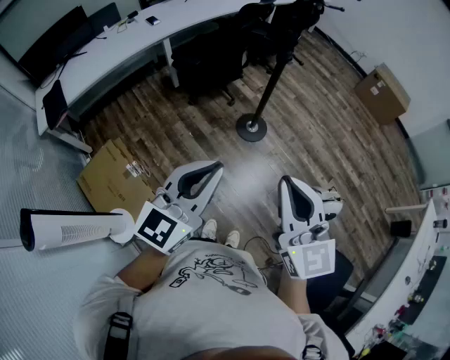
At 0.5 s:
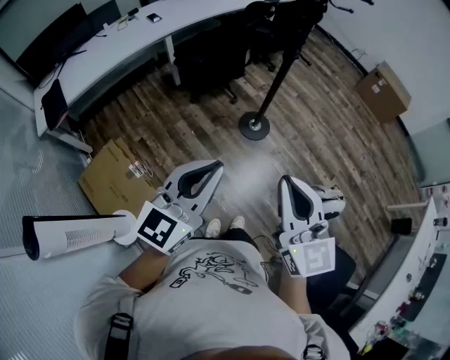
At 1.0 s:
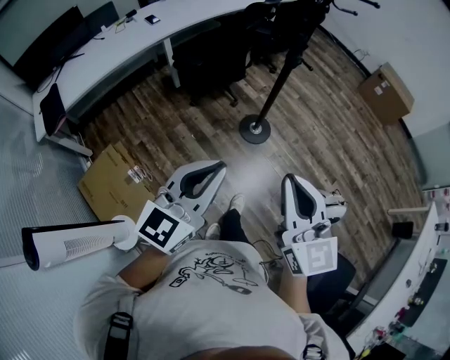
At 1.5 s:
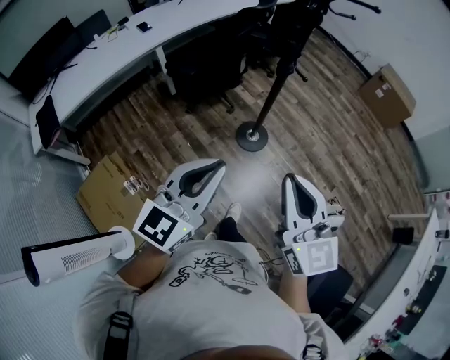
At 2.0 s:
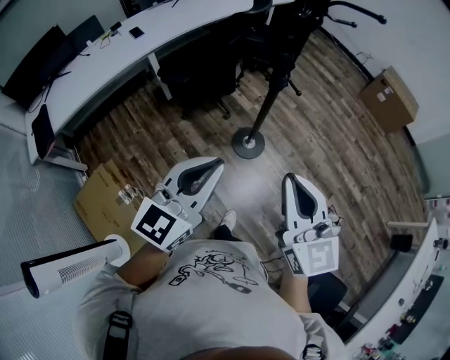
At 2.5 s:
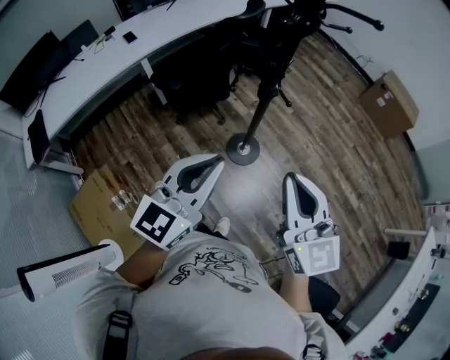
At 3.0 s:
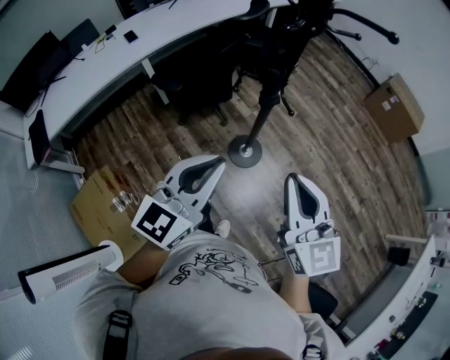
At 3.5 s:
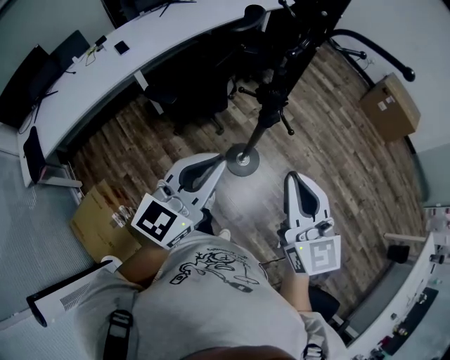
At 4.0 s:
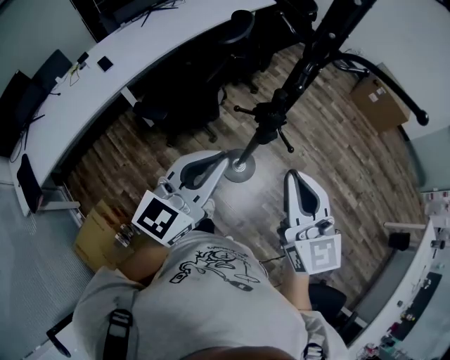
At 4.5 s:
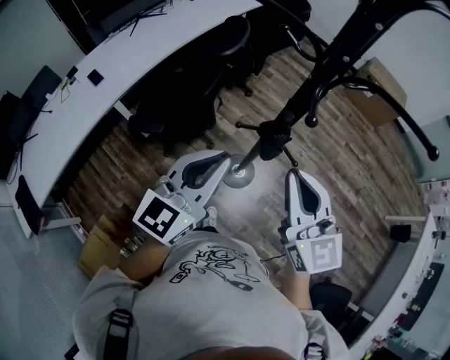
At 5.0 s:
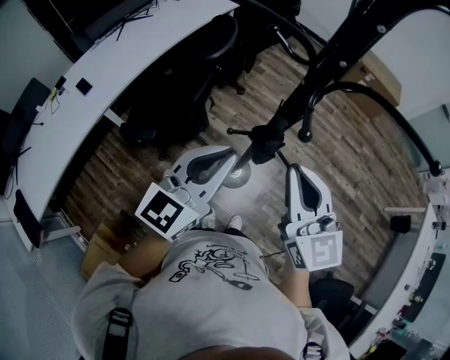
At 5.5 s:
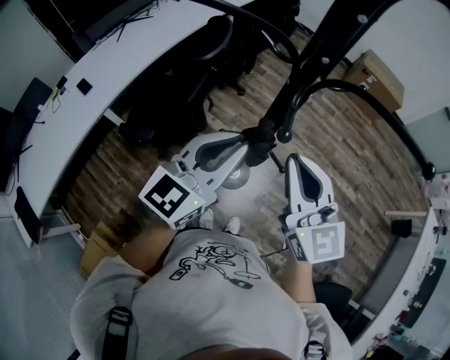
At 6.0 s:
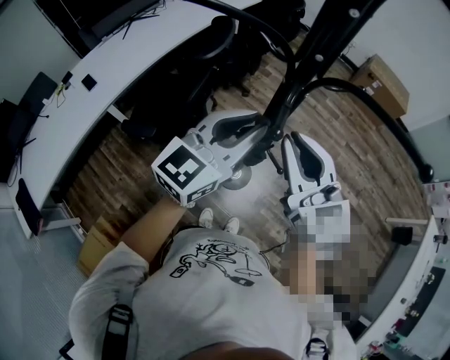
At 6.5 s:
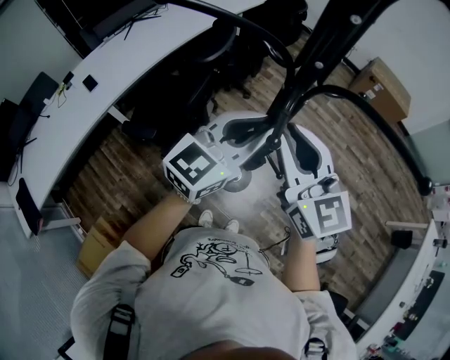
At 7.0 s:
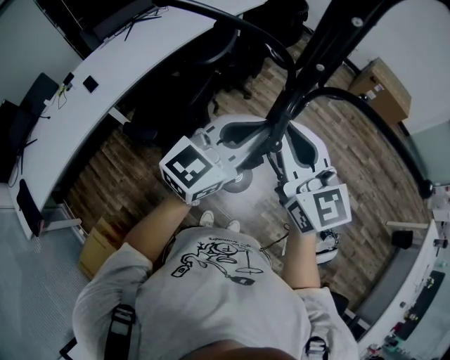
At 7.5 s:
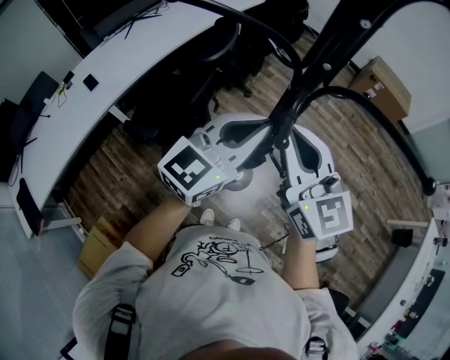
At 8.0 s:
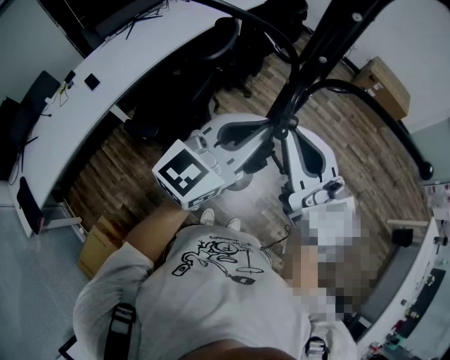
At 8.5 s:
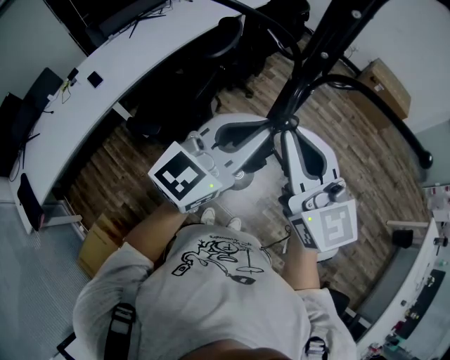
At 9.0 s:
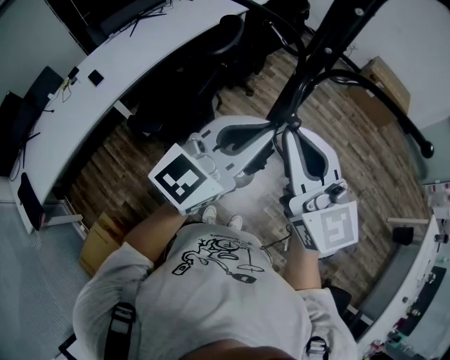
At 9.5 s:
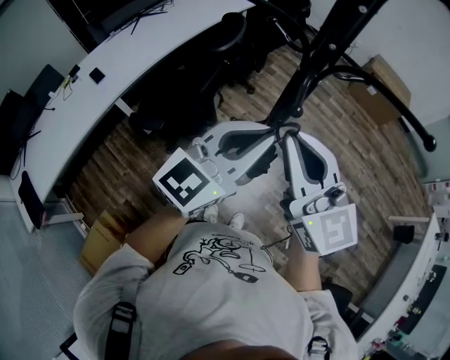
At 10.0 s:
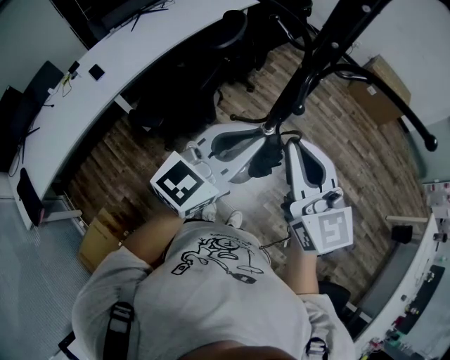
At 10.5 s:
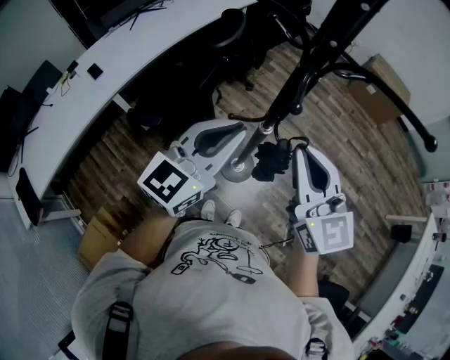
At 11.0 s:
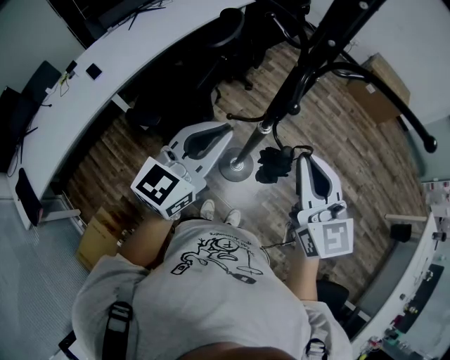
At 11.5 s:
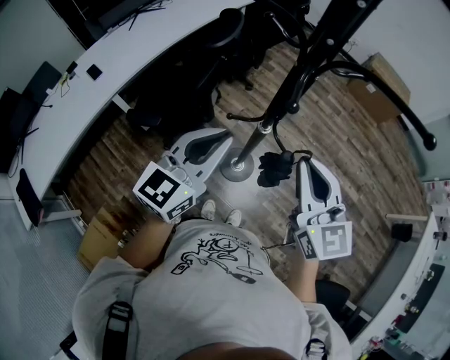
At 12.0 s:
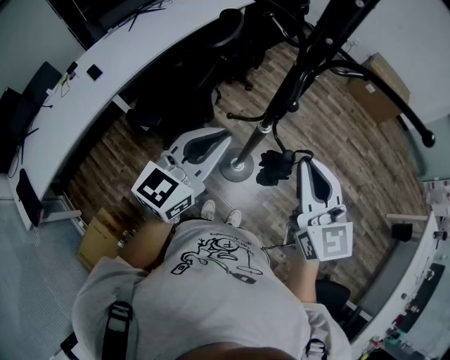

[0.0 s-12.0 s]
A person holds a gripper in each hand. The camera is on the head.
0.0 to 2.0 s: The grippers both shift forward by about 25 cm.
2.0 to 4.0 s: The grippers both shift forward by some 30 cm.
4.0 to 6.0 s: Both grippers travel together forward, approximately 15 cm.
6.0 to 8.0 s: There are only small adjustments of the grippers.
8.0 to 10.0 s: The grippers both shift backward by about 5 cm.
10.0 to 12.0 s: The left gripper changes place by about 5 cm. Meanwhile the right gripper travels to the right by some 5 cm.

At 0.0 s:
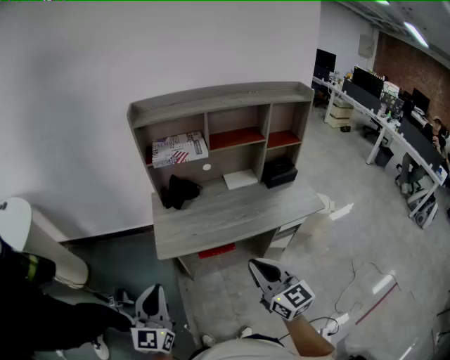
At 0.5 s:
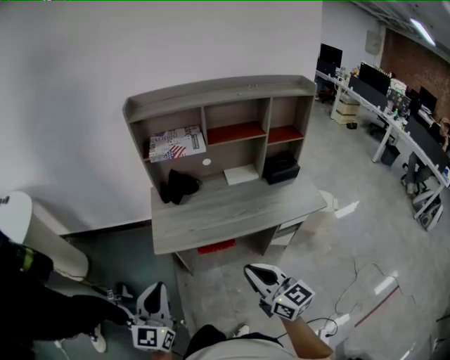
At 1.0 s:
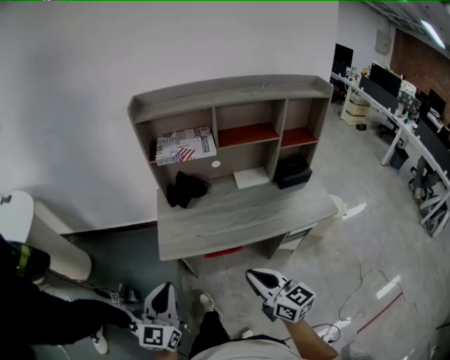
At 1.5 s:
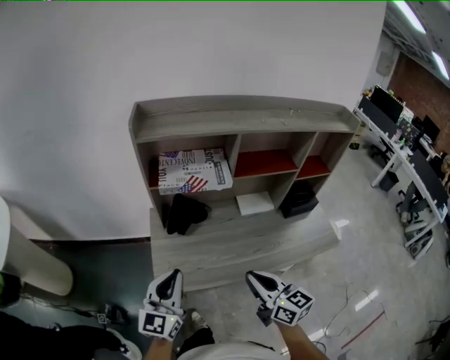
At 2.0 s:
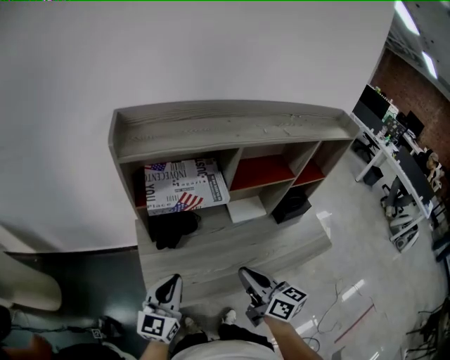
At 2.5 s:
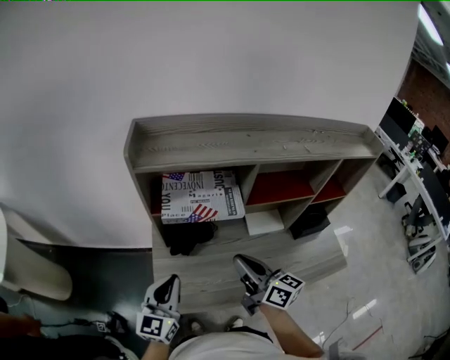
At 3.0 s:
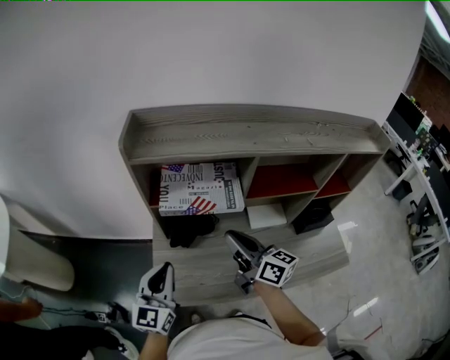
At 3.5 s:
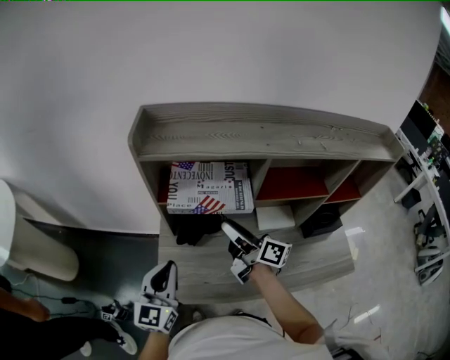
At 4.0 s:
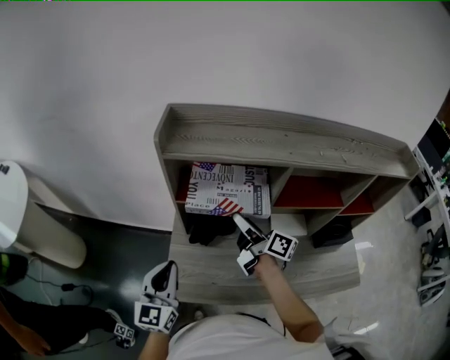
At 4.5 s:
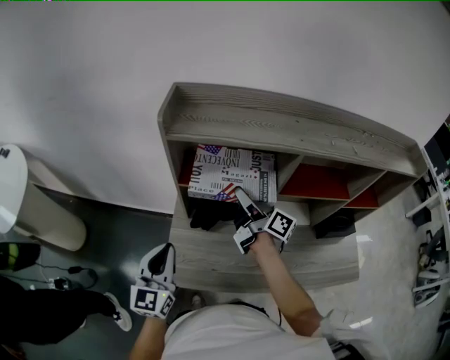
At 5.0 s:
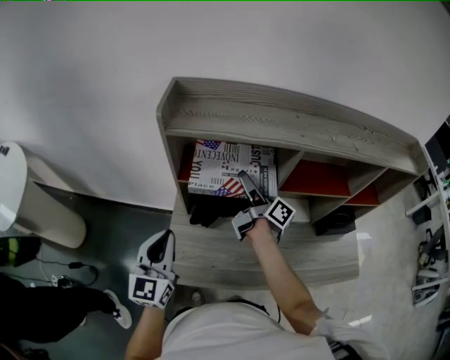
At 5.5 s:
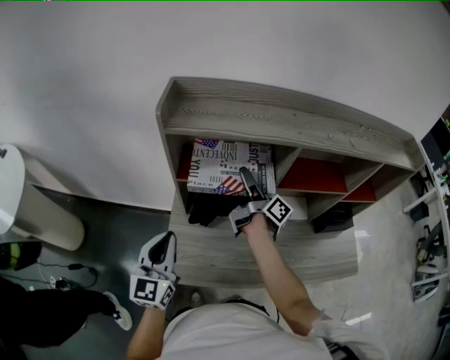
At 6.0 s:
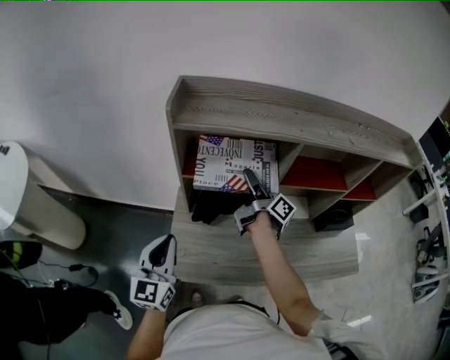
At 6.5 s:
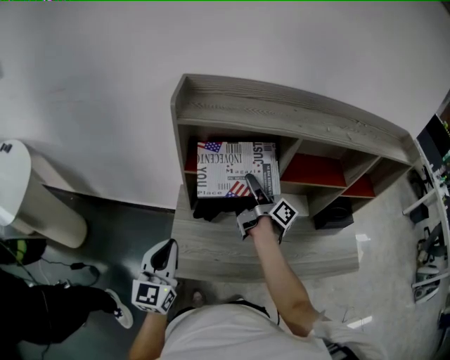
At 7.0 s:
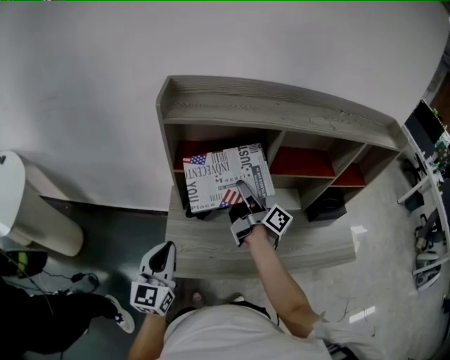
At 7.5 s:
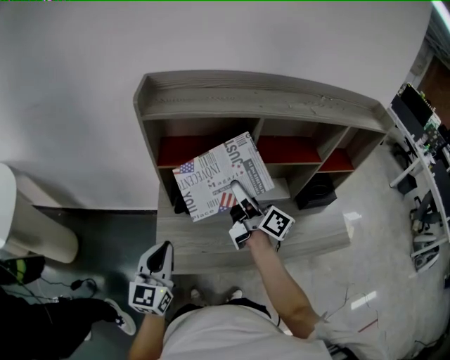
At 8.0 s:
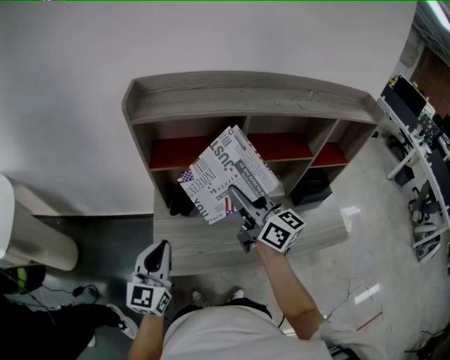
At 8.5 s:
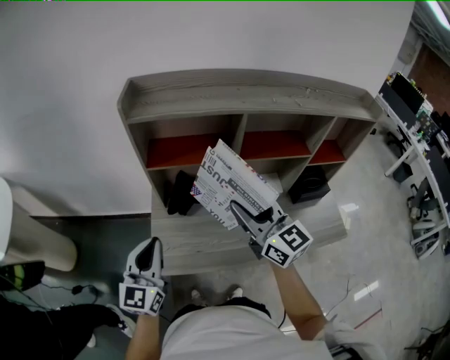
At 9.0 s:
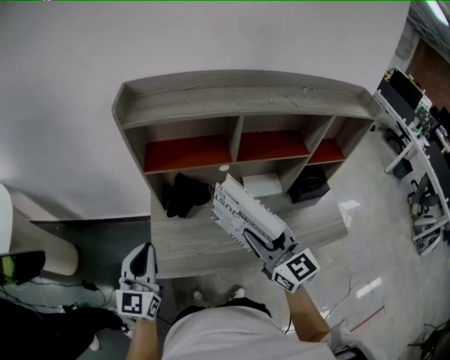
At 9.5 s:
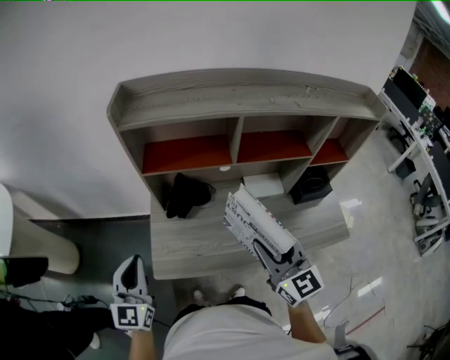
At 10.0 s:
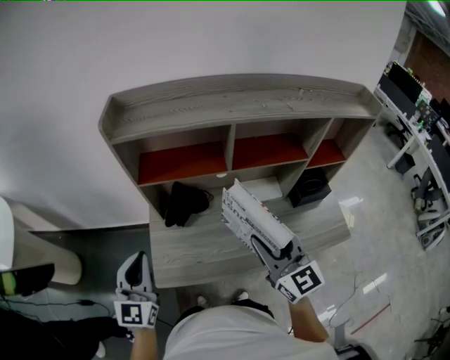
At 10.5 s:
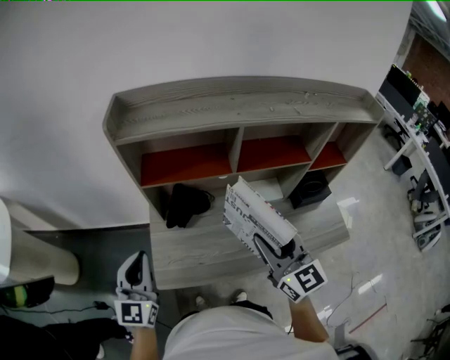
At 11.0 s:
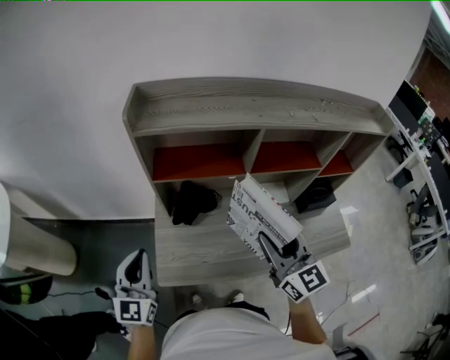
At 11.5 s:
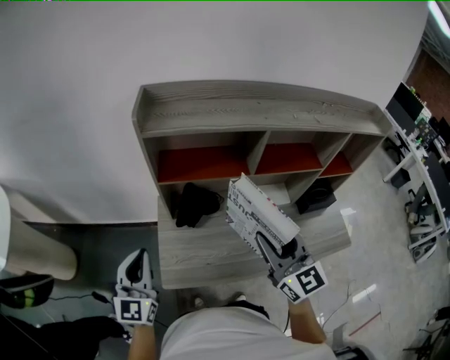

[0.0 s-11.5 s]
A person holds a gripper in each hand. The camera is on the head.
0.0 to 2.0 s: Both grippers travel together forward, about 30 cm. The right gripper changes its angle by roughly 30 degrees.
2.0 to 4.0 s: The right gripper heads forward, covering about 25 cm, swivels roughly 30 degrees, and opens its fingers. The left gripper moves to the left, about 5 cm, and swivels some 20 degrees.
4.0 to 6.0 s: The right gripper heads forward, covering some 5 cm, and rotates some 30 degrees.
6.0 to 7.5 s: The left gripper heads backward, covering some 5 cm, while the right gripper moves backward, approximately 10 cm, and changes its angle by approximately 30 degrees.
7.5 to 9.5 s: The left gripper shifts some 5 cm to the left. The right gripper goes roughly 15 cm backward, and rotates around the line of its fingers by about 60 degrees, counterclockwise from behind.
9.5 to 11.5 s: The right gripper moves some 10 cm. The left gripper goes some 5 cm forward.

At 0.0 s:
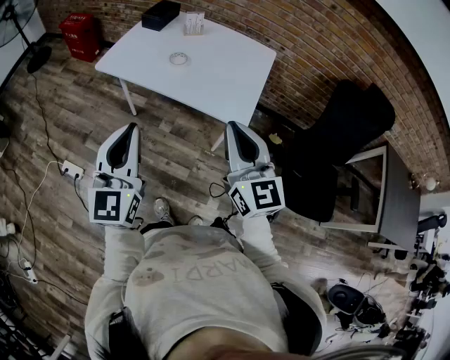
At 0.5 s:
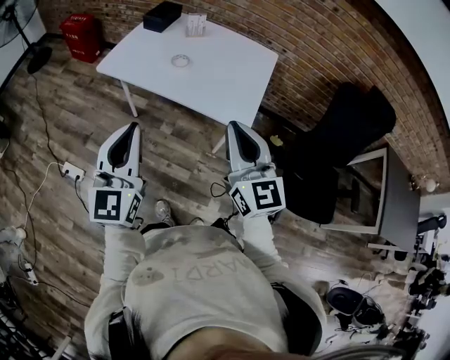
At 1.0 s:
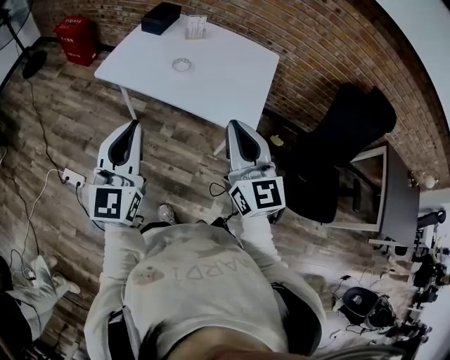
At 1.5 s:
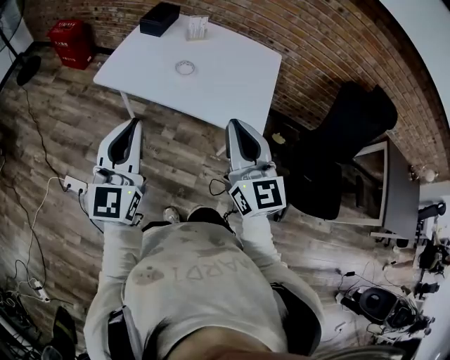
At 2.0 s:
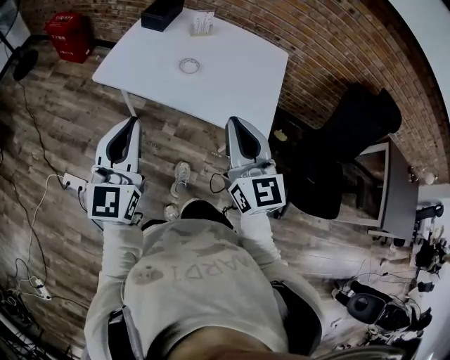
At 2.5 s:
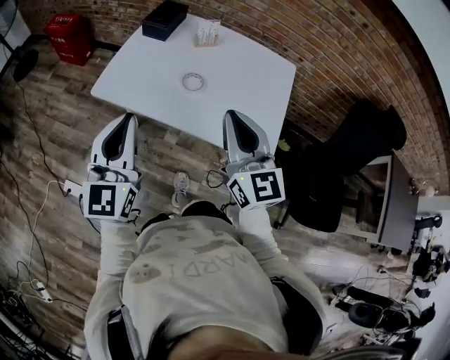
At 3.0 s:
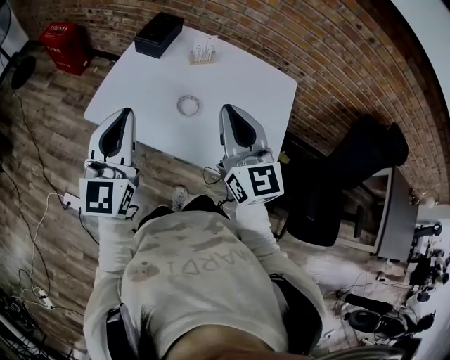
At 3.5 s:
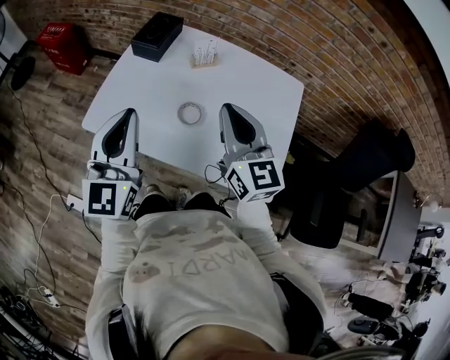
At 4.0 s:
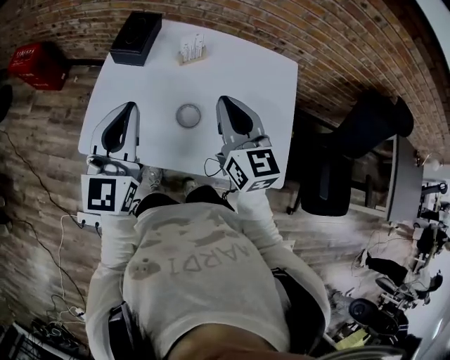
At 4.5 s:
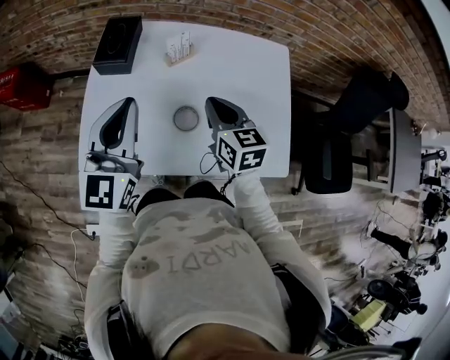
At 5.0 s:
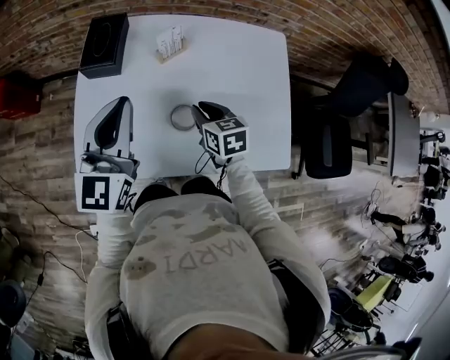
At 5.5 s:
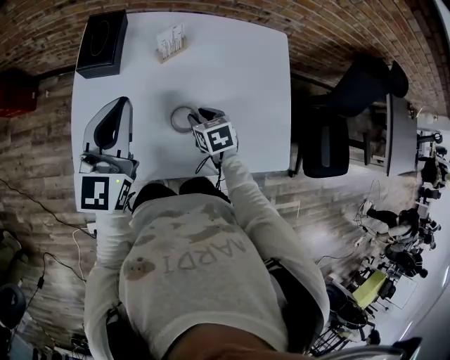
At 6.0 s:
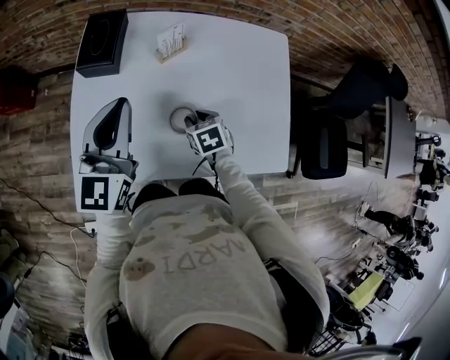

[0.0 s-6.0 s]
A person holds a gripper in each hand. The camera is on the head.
0.0 to 2.0 s: Both grippers move forward and to the left, roughly 15 cm.
2.0 to 4.0 s: Both grippers travel together forward, approximately 35 cm.
4.0 to 6.0 s: The left gripper is displaced forward and downward by some 10 cm; the right gripper goes some 30 cm downward, angles its fingers downward, by roughly 50 degrees, and opens.
